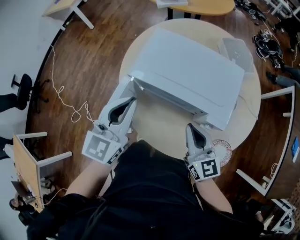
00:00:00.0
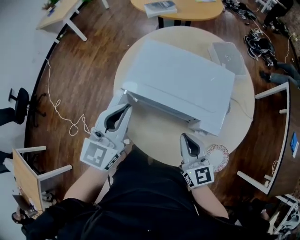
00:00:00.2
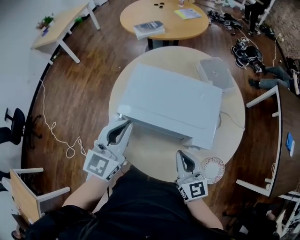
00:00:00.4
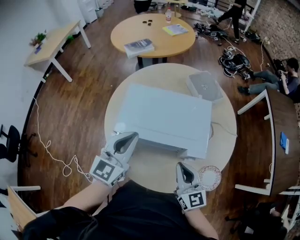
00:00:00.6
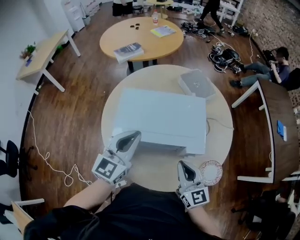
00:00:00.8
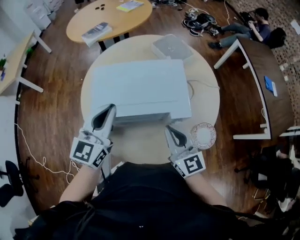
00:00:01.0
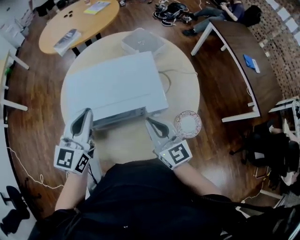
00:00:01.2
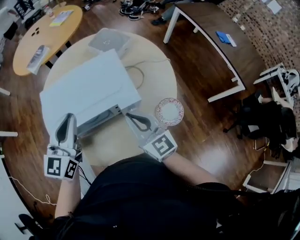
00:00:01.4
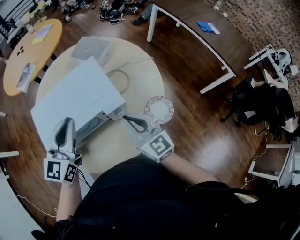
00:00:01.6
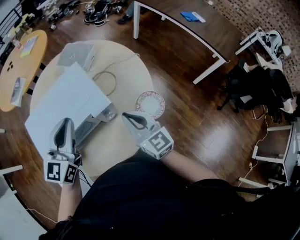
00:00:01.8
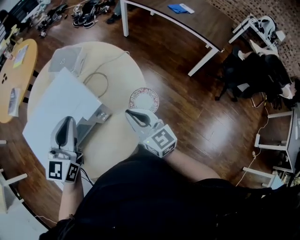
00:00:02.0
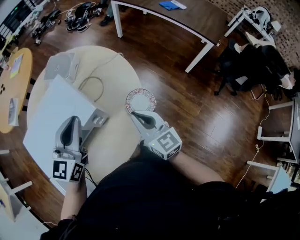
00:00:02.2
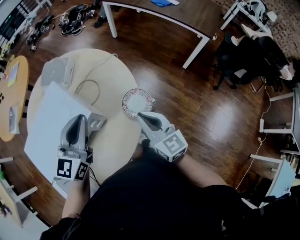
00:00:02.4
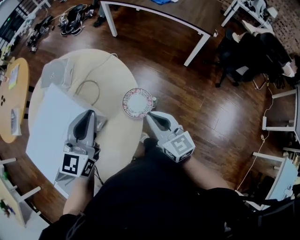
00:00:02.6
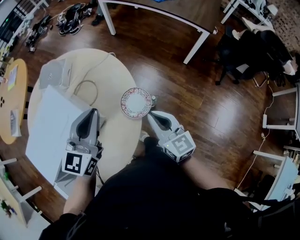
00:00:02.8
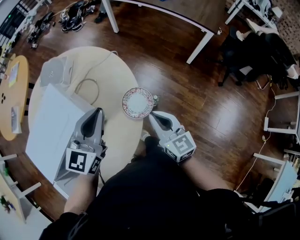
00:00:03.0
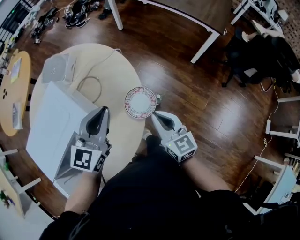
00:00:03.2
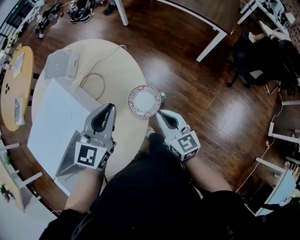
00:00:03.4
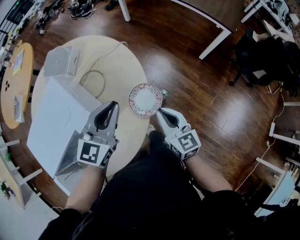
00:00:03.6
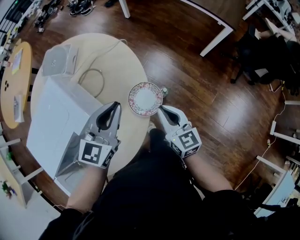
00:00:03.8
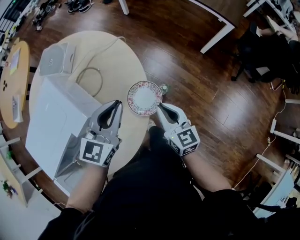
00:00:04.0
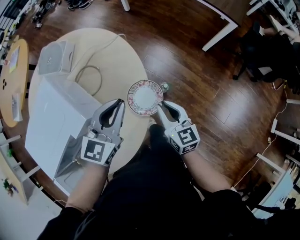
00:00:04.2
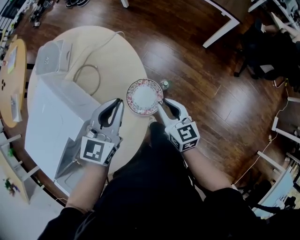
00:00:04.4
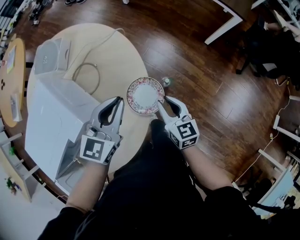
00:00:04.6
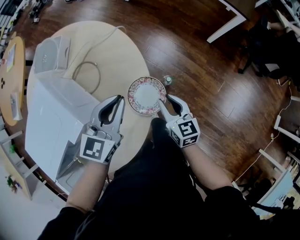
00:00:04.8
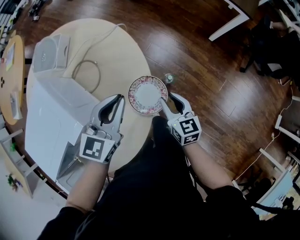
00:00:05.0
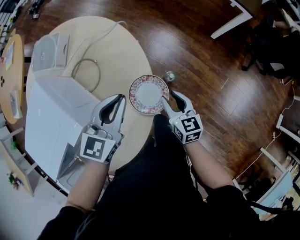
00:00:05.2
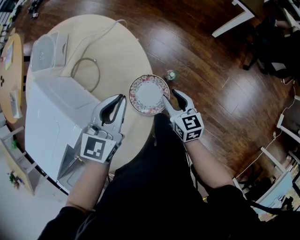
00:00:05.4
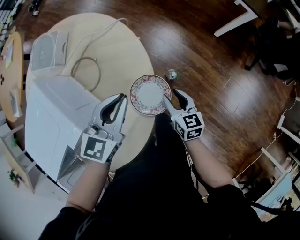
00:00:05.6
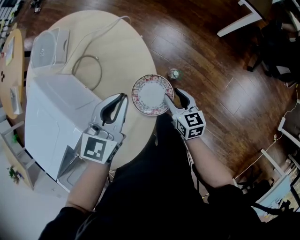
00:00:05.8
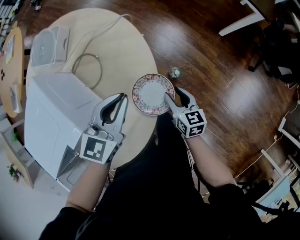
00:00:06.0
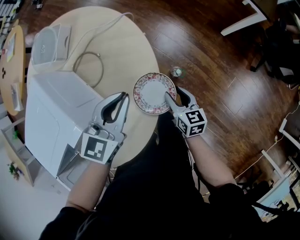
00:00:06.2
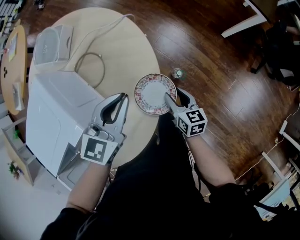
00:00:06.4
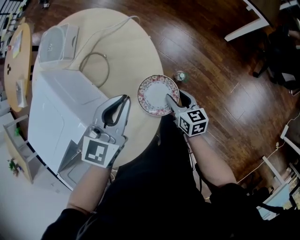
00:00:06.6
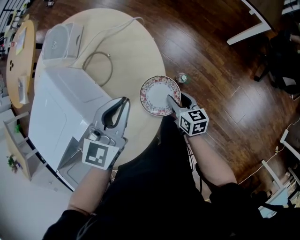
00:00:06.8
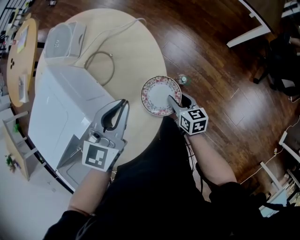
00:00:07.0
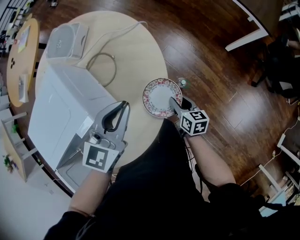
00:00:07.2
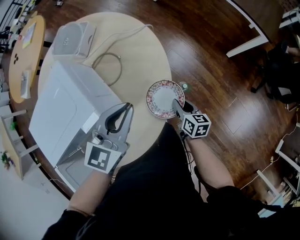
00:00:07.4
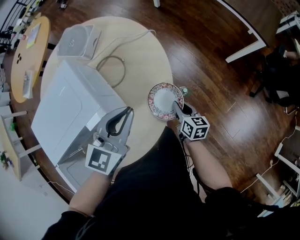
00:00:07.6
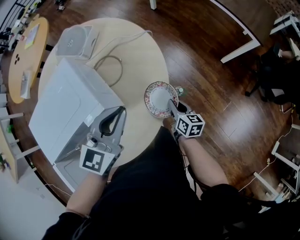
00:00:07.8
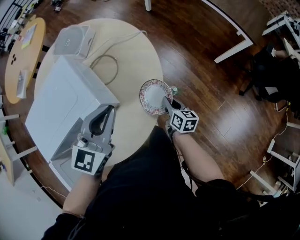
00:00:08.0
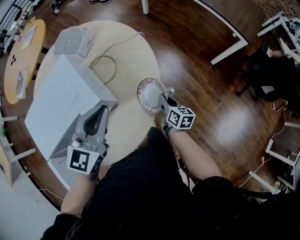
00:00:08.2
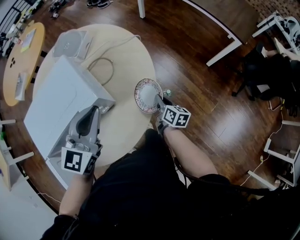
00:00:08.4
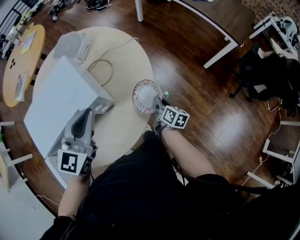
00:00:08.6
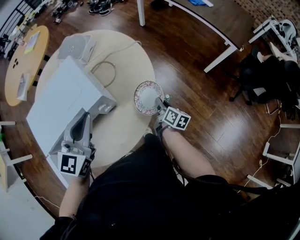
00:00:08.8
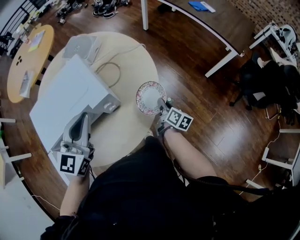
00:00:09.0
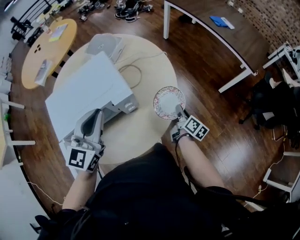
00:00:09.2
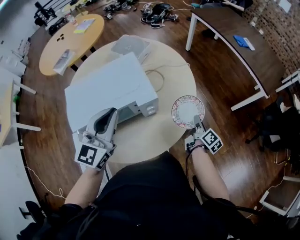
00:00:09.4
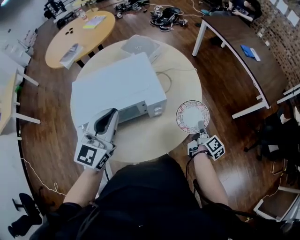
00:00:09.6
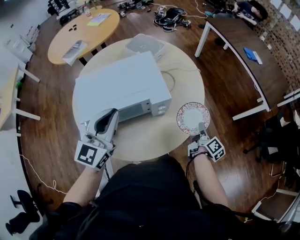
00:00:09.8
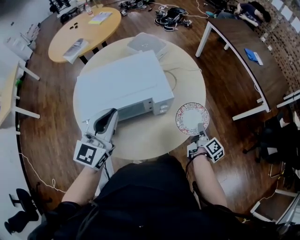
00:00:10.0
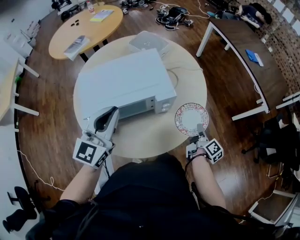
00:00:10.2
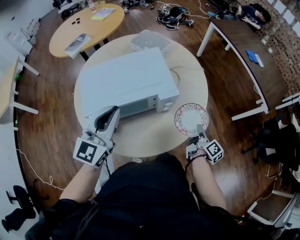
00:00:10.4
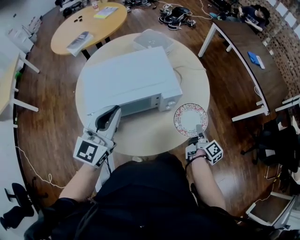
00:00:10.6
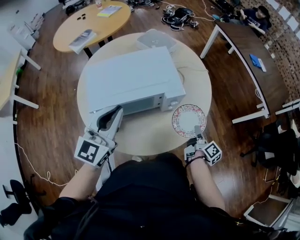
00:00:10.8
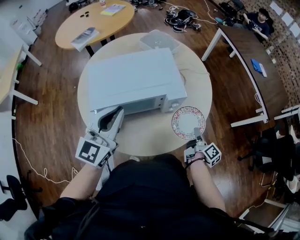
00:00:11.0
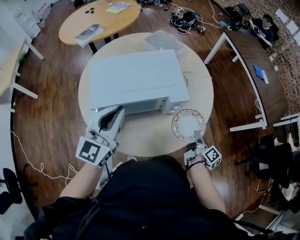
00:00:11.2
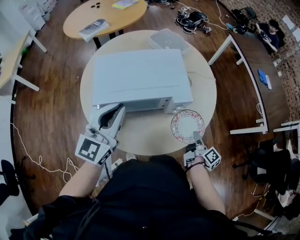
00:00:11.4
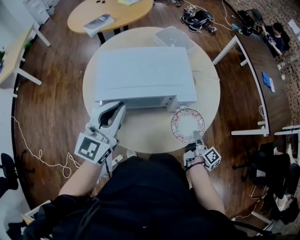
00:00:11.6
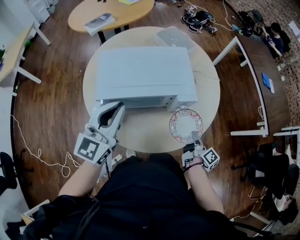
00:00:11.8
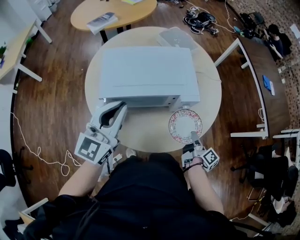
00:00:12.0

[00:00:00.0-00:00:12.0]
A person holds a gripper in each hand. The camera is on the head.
00:00:00.0 to 00:00:01.6: The right gripper ends up approximately 10 cm from where it was, and rotates about 30 degrees. Meanwhile the left gripper moves about 15 cm, and swivels approximately 40 degrees.
00:00:01.6 to 00:00:03.0: The left gripper moves approximately 25 cm, and rotates roughly 30 degrees, while the right gripper shifts by about 20 cm, and swivels about 30 degrees.
00:00:03.0 to 00:00:04.4: Both grippers move downward, about 10 cm.
00:00:04.4 to 00:00:06.0: The right gripper is displaced downward by roughly 10 cm, and opens. Meanwhile the left gripper changes place by some 5 cm.
00:00:06.0 to 00:00:07.6: The right gripper closes up. Meanwhile the left gripper goes roughly 5 cm upward.
00:00:07.6 to 00:00:09.0: The right gripper travels upward by approximately 5 cm, and changes its angle by roughly 20 degrees, while the left gripper heads to the left, backward and upward, covering about 15 cm.
00:00:09.0 to 00:00:10.4: The right gripper moves upward and backward, about 10 cm. The left gripper travels to the left and backward by some 15 cm.
00:00:10.4 to 00:00:12.0: The right gripper is displaced to the left by about 10 cm. Meanwhile the left gripper moves roughly 5 cm.

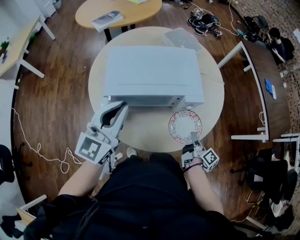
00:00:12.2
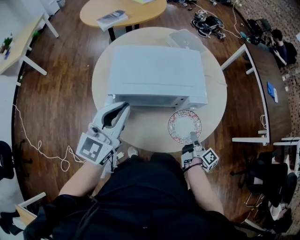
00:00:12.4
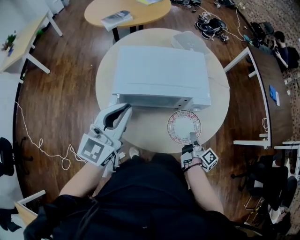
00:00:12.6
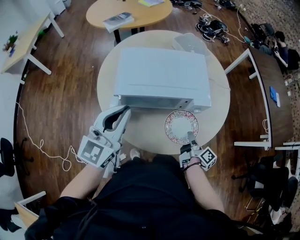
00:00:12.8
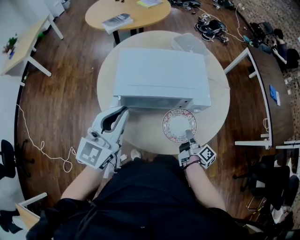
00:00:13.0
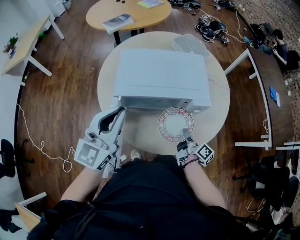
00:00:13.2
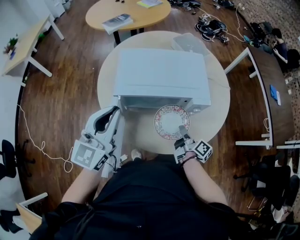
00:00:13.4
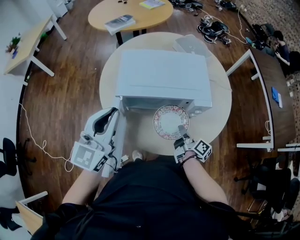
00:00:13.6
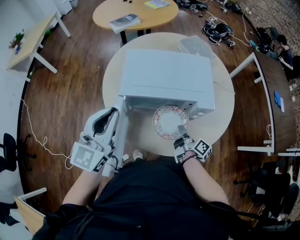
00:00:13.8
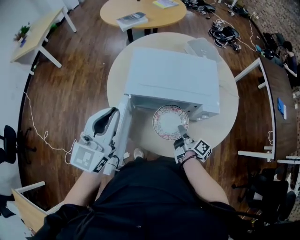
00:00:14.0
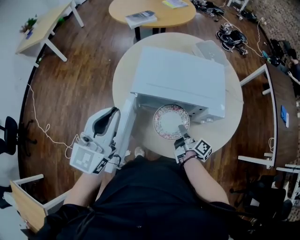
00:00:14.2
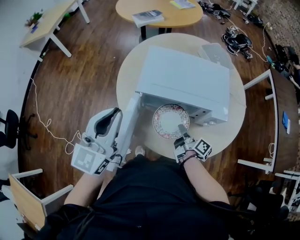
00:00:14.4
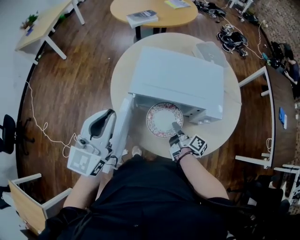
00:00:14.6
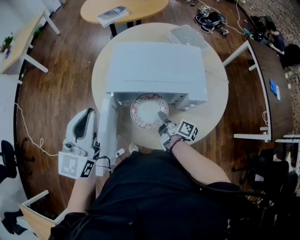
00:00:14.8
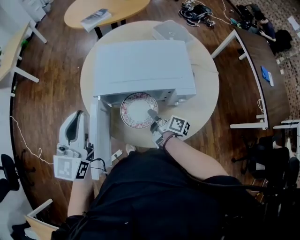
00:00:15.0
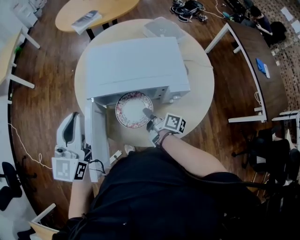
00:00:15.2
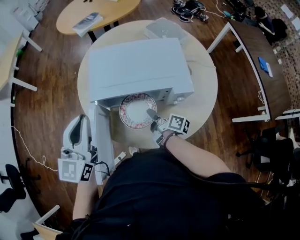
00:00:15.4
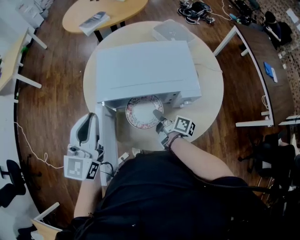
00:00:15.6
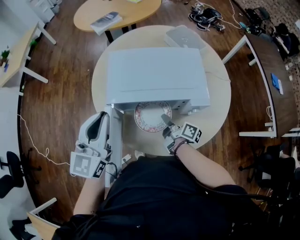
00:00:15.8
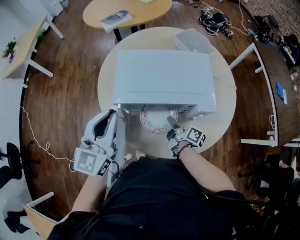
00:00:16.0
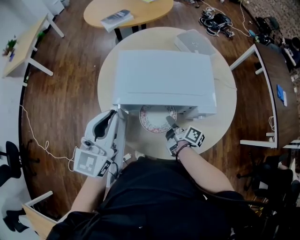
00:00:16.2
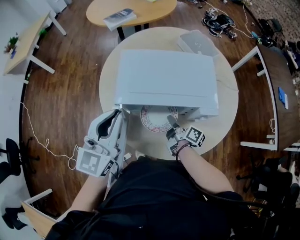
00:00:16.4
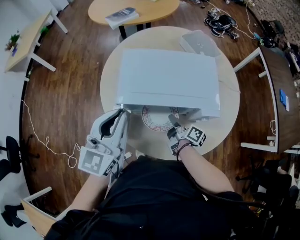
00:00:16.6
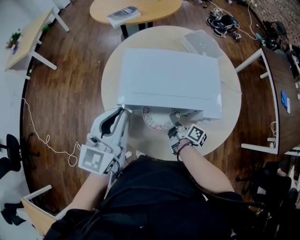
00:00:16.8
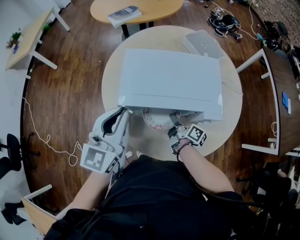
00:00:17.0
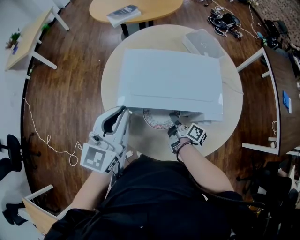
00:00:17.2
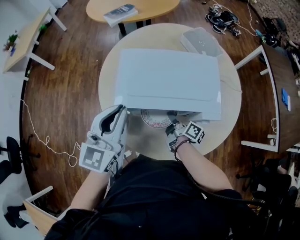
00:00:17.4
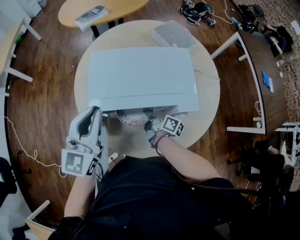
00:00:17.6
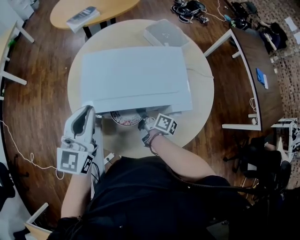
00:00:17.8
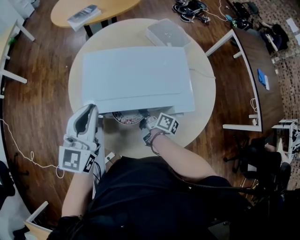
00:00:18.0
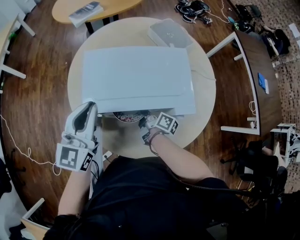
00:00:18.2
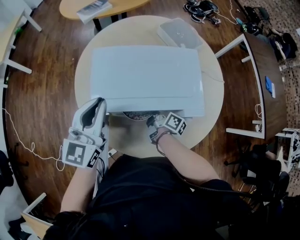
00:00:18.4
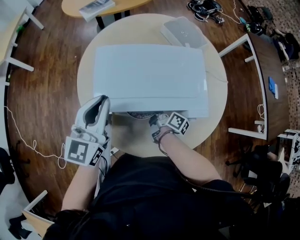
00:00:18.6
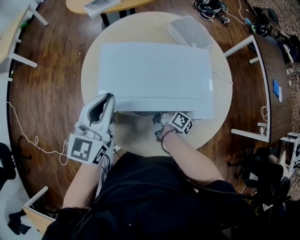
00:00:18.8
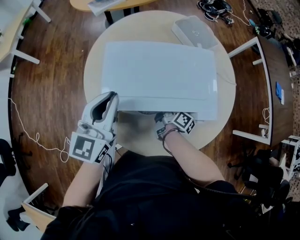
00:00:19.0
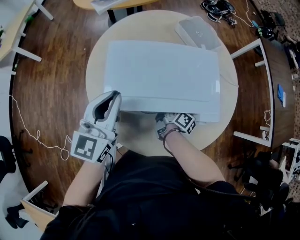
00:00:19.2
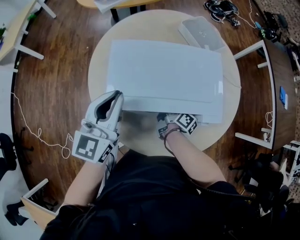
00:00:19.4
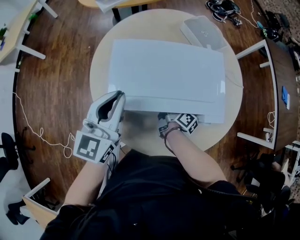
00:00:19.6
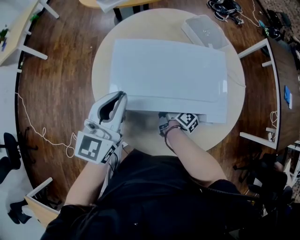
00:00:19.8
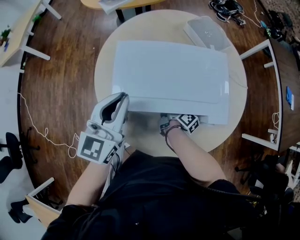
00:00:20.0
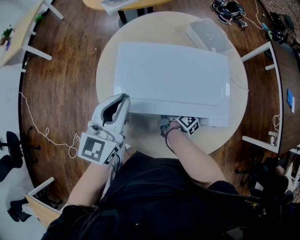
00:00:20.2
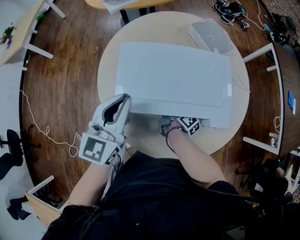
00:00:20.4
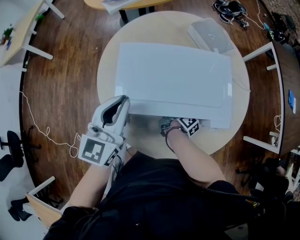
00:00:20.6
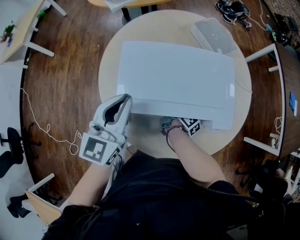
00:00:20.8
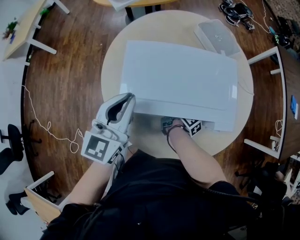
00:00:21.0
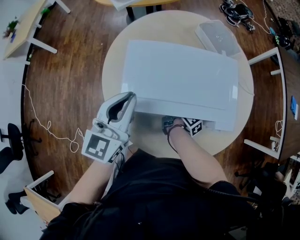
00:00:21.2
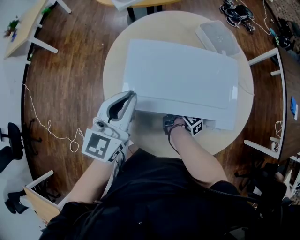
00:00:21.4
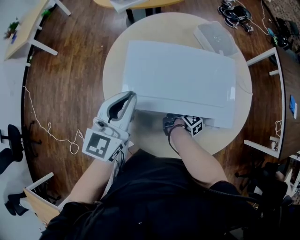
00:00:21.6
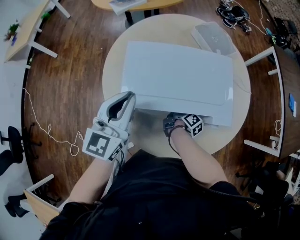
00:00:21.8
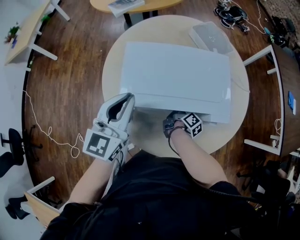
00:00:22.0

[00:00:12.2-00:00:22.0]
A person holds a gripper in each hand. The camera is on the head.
00:00:12.2 to 00:00:13.6: The right gripper goes approximately 10 cm to the left; the left gripper heads to the left, covering approximately 5 cm.
00:00:13.6 to 00:00:15.0: The right gripper shifts approximately 10 cm to the left.
00:00:15.0 to 00:00:16.4: The left gripper changes place by some 5 cm.
00:00:16.4 to 00:00:17.8: The left gripper is displaced forward by about 5 cm.
00:00:17.8 to 00:00:19.2: The grippers move only a little.
00:00:19.2 to 00:00:22.0: The grippers make only small movements.

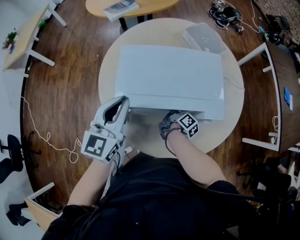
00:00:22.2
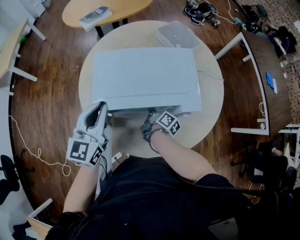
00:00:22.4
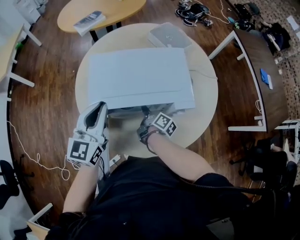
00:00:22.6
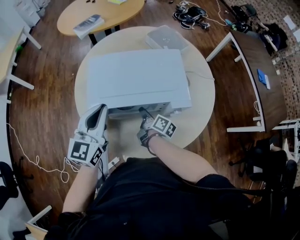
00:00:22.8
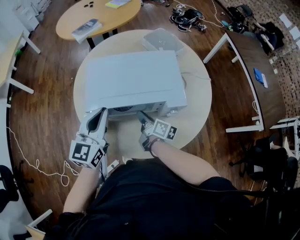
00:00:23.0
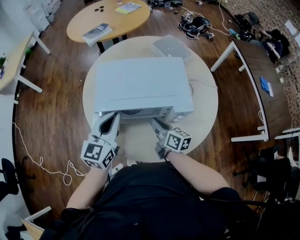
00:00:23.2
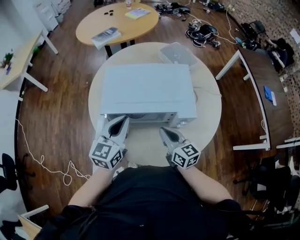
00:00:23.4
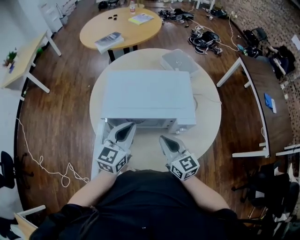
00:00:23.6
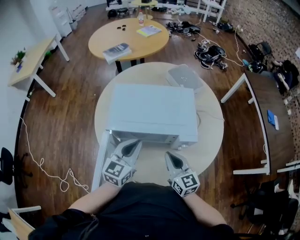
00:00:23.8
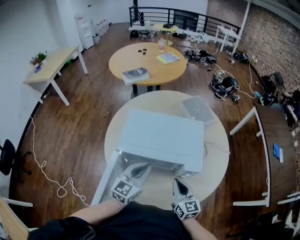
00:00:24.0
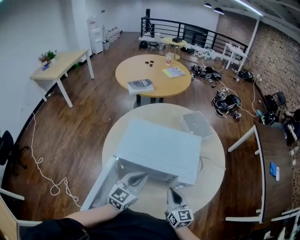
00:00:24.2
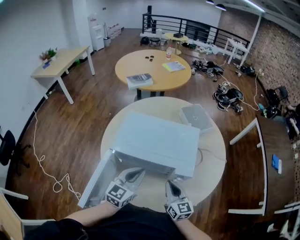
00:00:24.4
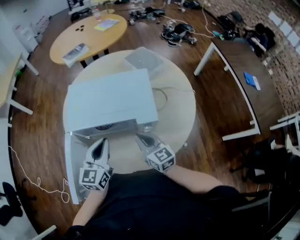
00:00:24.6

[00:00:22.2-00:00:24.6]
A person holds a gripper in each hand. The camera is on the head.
00:00:22.2 to 00:00:23.4: The left gripper heads to the right, covering some 5 cm, while the right gripper moves upward and backward, some 20 cm, and rotates around the line of its fingers by some 60 degrees, counterclockwise from behind.
00:00:23.4 to 00:00:24.6: The left gripper rotates approximately 20 degrees. The right gripper is displaced forward by roughly 10 cm, and changes its angle by about 20 degrees.
